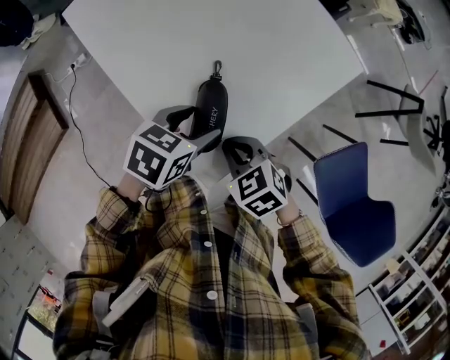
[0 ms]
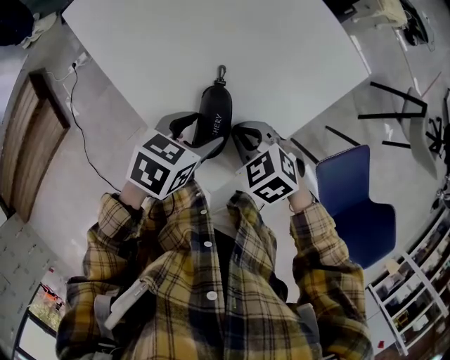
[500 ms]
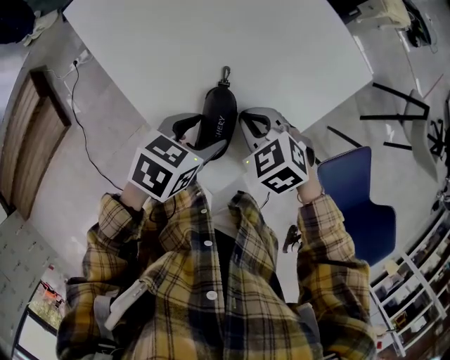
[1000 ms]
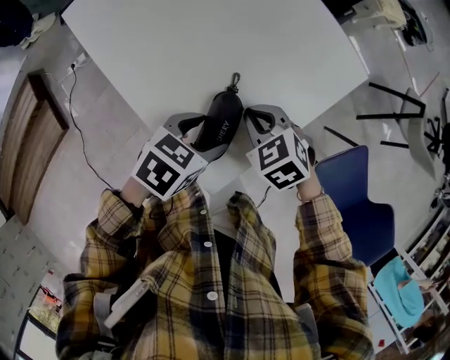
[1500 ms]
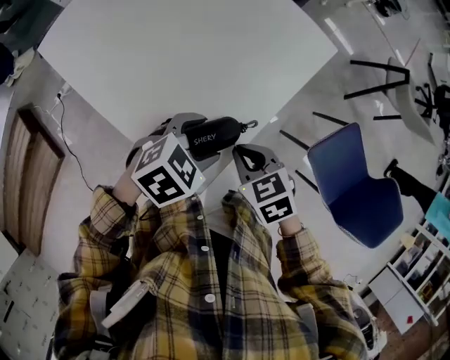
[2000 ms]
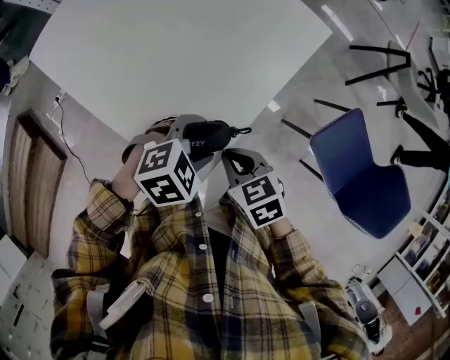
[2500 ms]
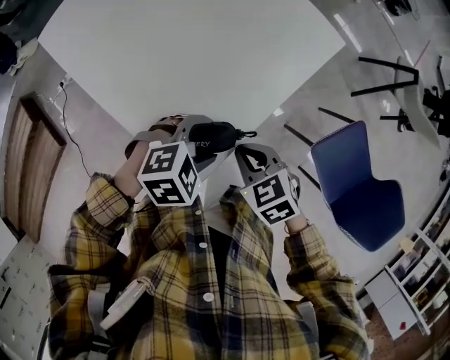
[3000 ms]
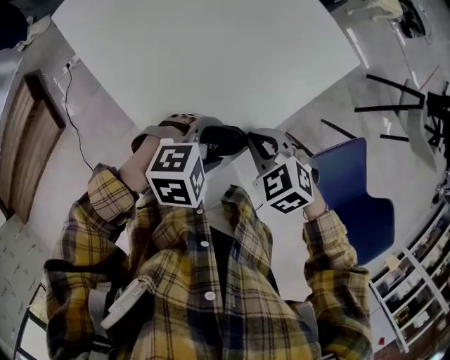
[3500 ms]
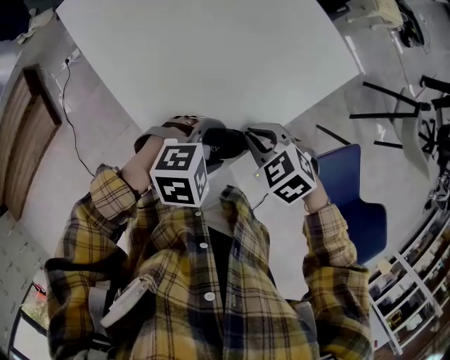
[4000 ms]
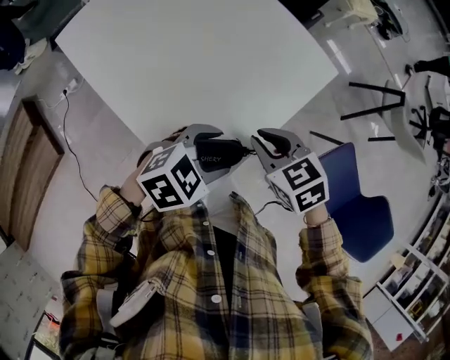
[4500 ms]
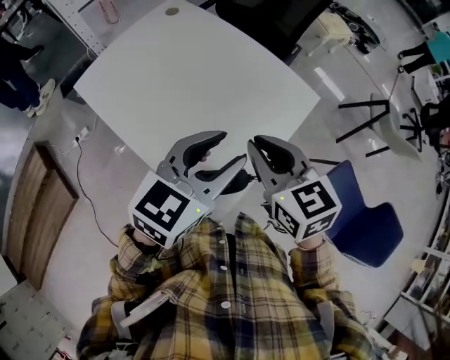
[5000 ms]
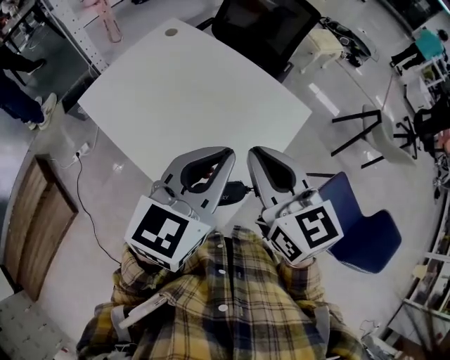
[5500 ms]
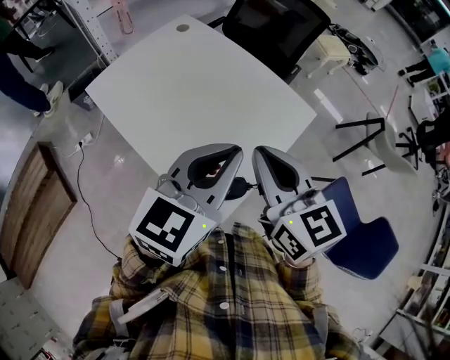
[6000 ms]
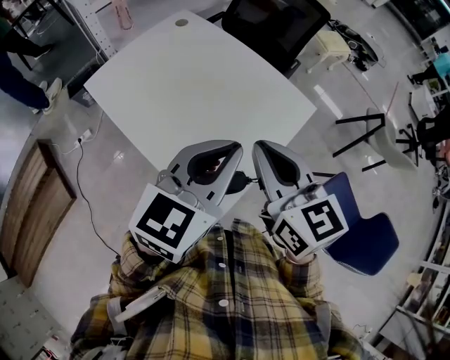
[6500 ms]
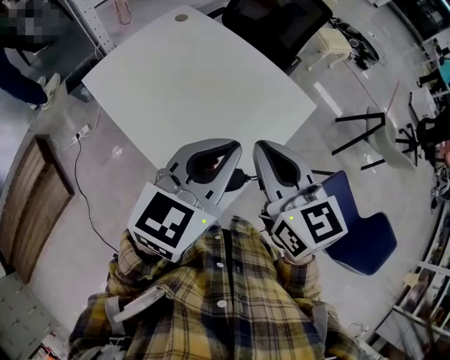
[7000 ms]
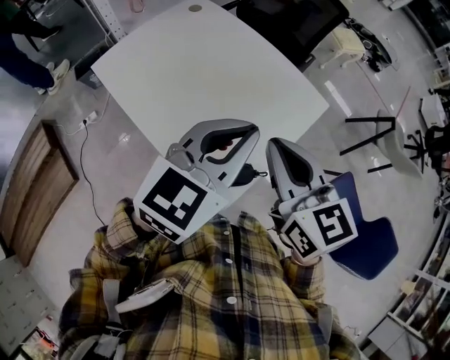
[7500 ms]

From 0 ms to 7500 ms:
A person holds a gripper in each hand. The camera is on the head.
From 0 ms to 2000 ms: The grippers both shift to the right by approximately 5 cm. The left gripper swivels approximately 40 degrees; the right gripper moves roughly 10 cm forward and comes back, and rotates approximately 20 degrees.
From 2000 ms to 4000 ms: The right gripper turns by approximately 30 degrees.
From 4000 ms to 5500 ms: The two grippers go about 30 cm upward. The right gripper angles its fingers upward, by some 50 degrees. Meanwhile the left gripper points its fingers about 50 degrees further upward, and closes.
From 5500 ms to 7500 ms: There are only small adjustments of the grippers.

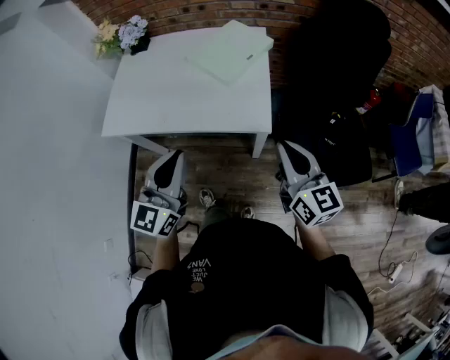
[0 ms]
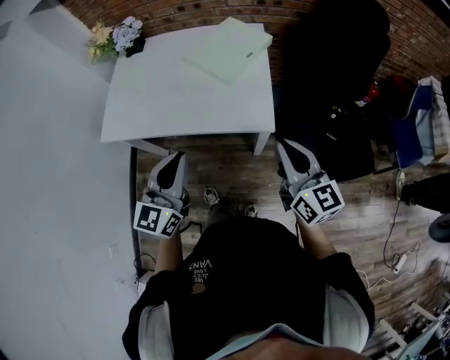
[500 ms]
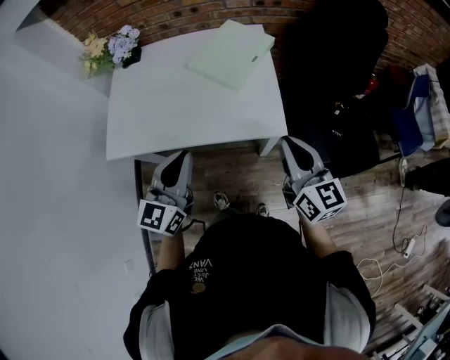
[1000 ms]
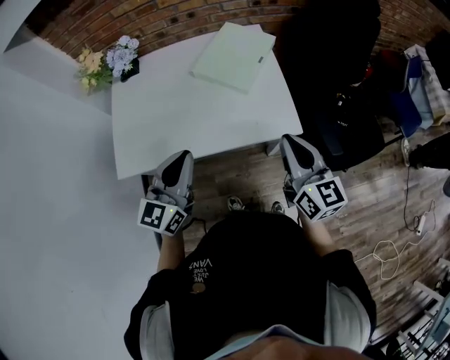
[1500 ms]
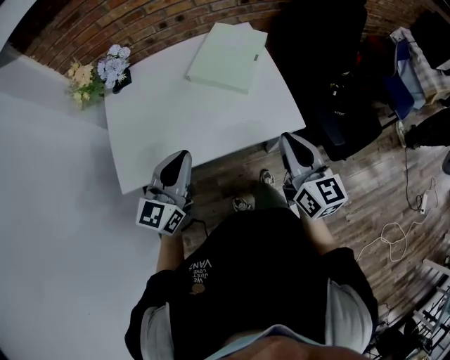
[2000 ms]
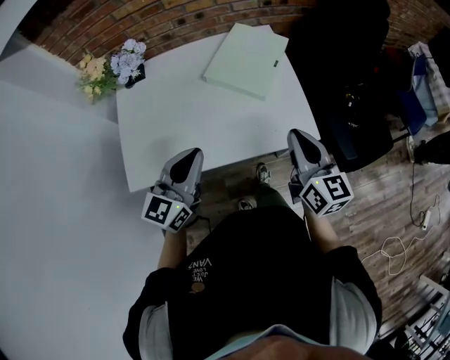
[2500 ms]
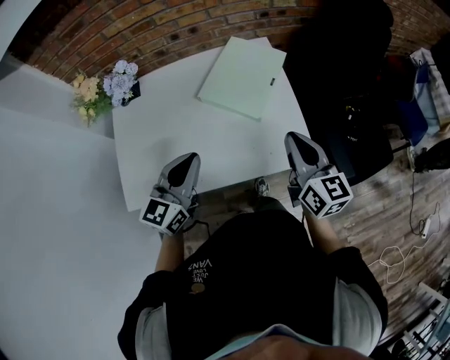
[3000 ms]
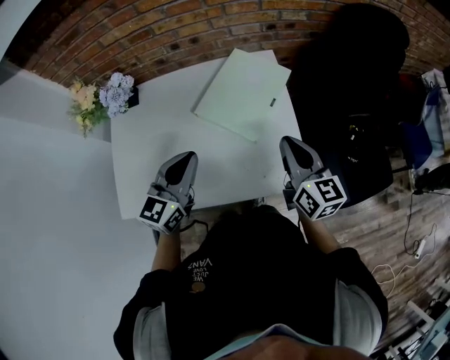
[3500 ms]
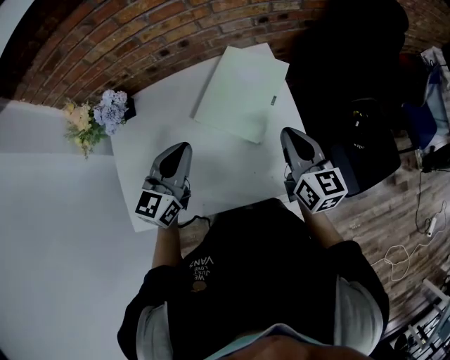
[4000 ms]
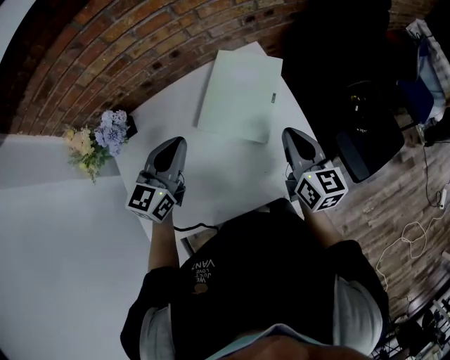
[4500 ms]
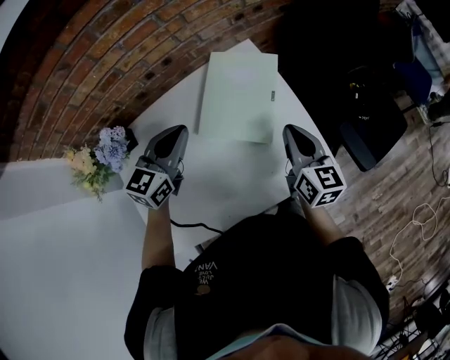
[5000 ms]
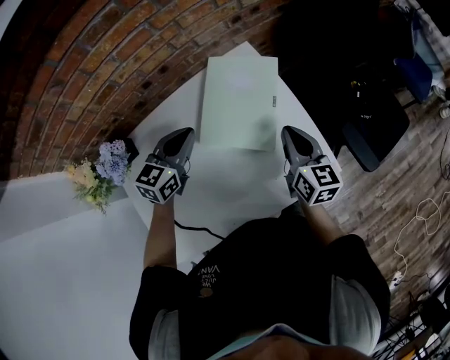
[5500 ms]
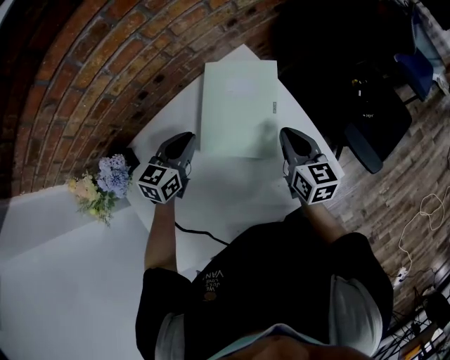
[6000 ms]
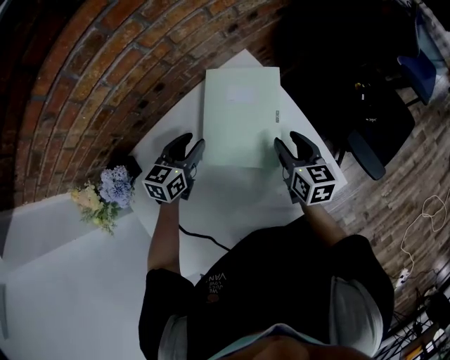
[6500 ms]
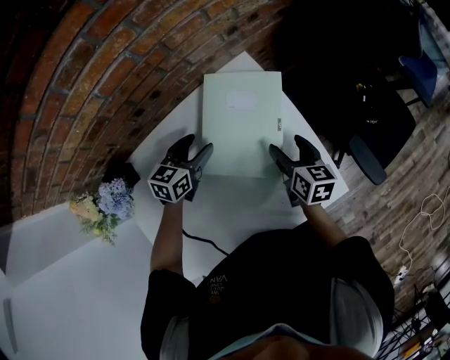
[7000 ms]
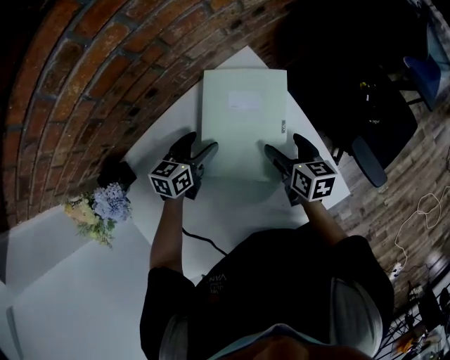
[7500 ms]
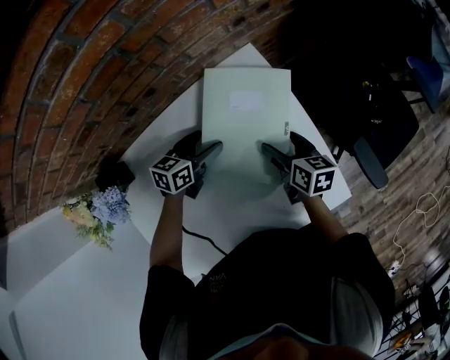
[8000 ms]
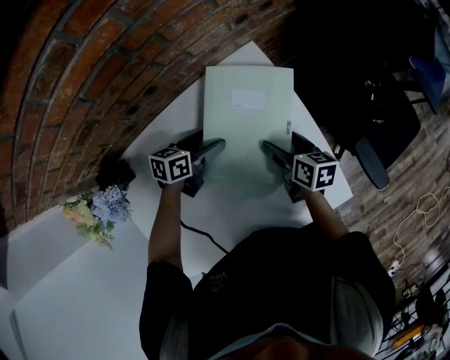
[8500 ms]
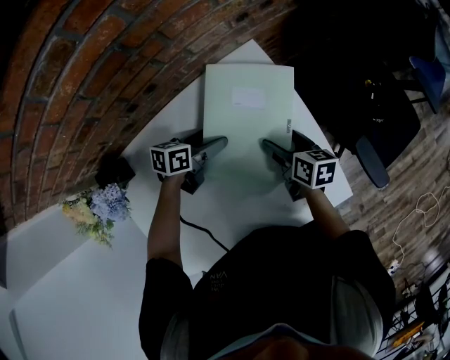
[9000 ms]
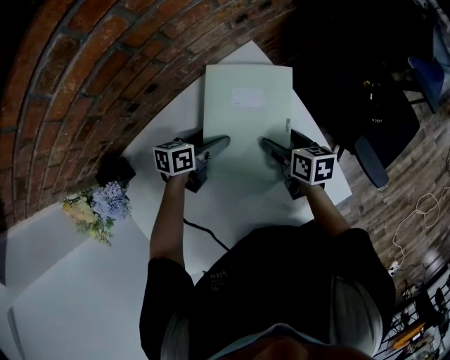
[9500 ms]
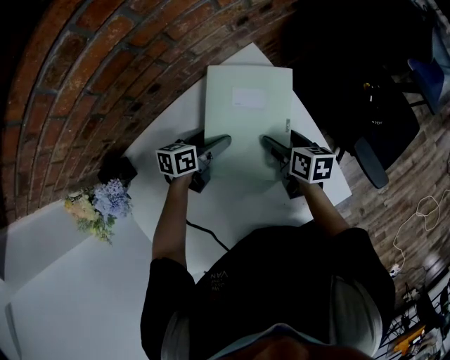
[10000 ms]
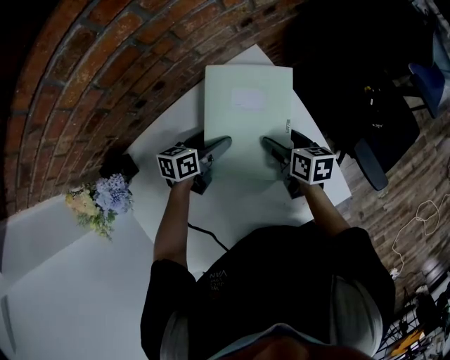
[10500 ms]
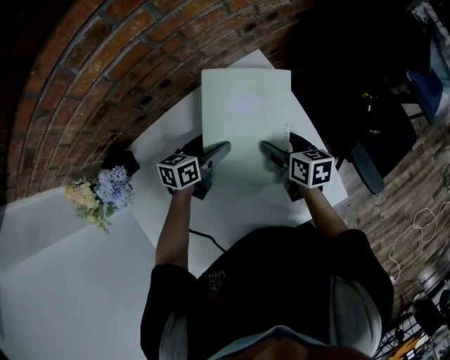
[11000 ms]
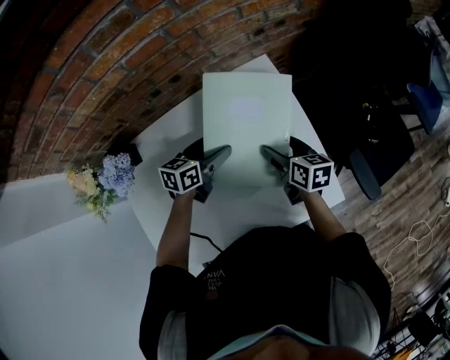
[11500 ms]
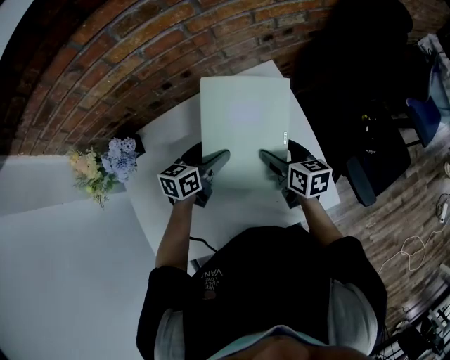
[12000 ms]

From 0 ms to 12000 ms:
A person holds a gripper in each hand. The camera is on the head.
From 0 ms to 2000 ms: The left gripper moves to the left and forward, roughly 20 cm, and swivels some 20 degrees. The right gripper is displaced to the left by some 15 cm, and rotates about 20 degrees.
From 2000 ms to 4000 ms: Both grippers move forward, about 25 cm.
From 4000 ms to 6000 ms: The right gripper travels downward by about 10 cm; the left gripper is displaced forward and downward by approximately 20 cm, and swivels roughly 30 degrees.
From 6000 ms to 8000 ms: Both grippers travel together downward and forward, about 10 cm. The left gripper changes its angle by about 20 degrees, and opens. The right gripper rotates about 20 degrees, and opens.
From 8000 ms to 10000 ms: The grippers make only small movements.
From 10000 ms to 12000 ms: The left gripper is displaced upward and backward by about 10 cm, and rotates some 20 degrees; the right gripper shifts about 10 cm upward.

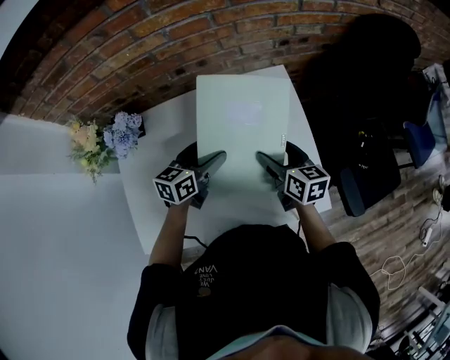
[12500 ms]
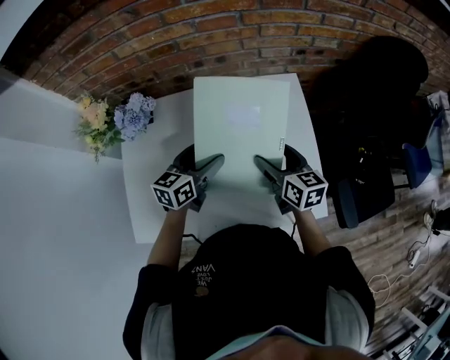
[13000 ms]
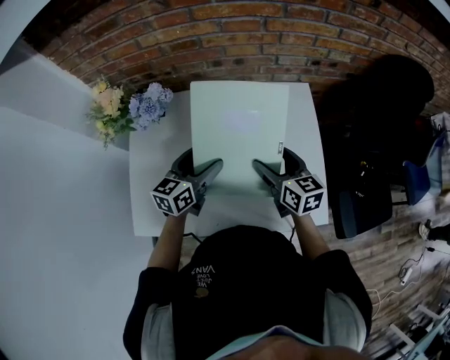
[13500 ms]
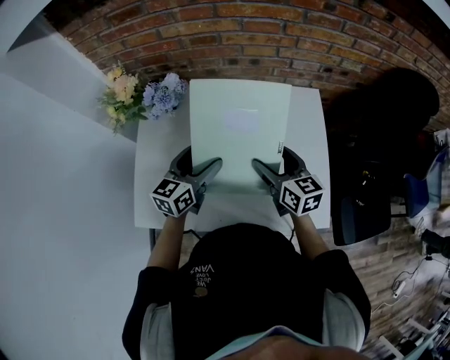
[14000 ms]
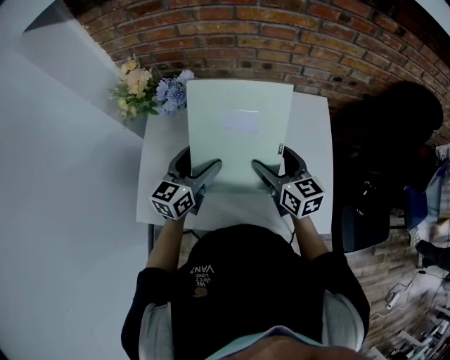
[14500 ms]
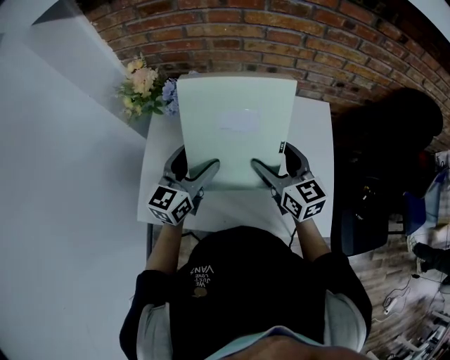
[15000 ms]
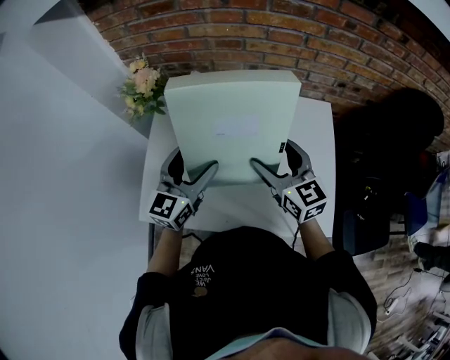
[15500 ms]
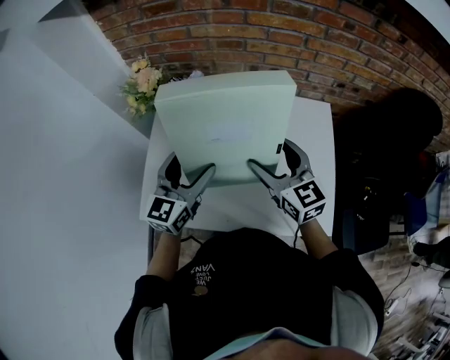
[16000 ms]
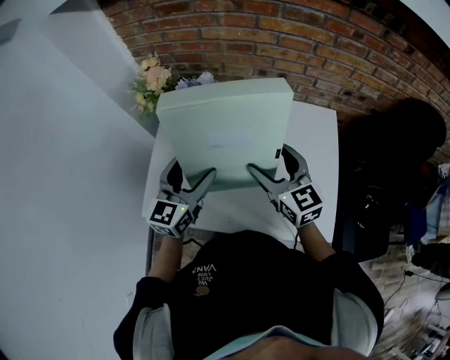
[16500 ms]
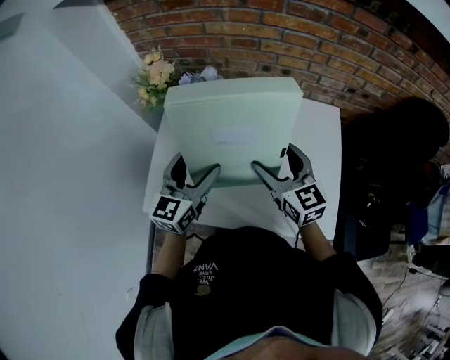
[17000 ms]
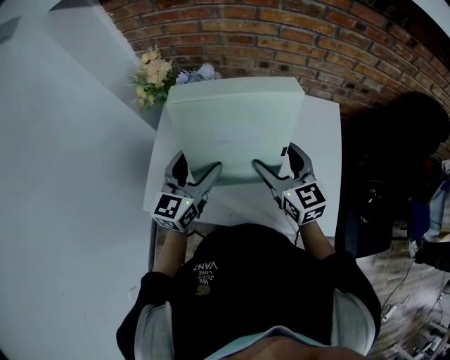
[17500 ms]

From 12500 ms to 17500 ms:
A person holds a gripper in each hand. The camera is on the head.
From 12500 ms to 15000 ms: The right gripper moves to the left and upward, some 20 cm, and swivels roughly 30 degrees; the left gripper is displaced to the left, upward and backward by roughly 20 cm, and turns by approximately 30 degrees.
From 15000 ms to 17500 ms: The grippers make only small movements.

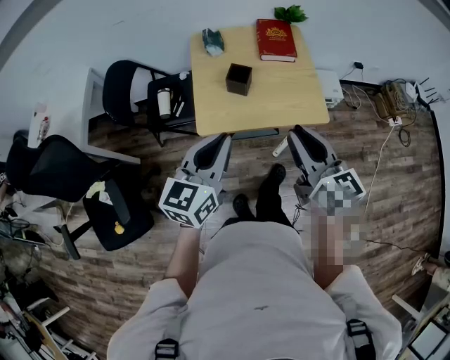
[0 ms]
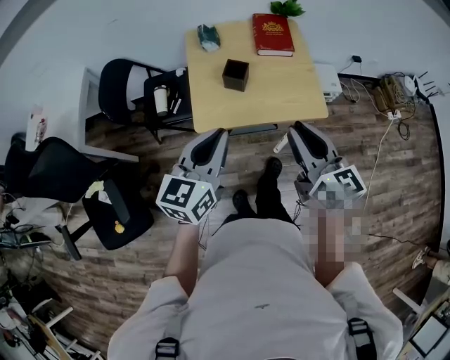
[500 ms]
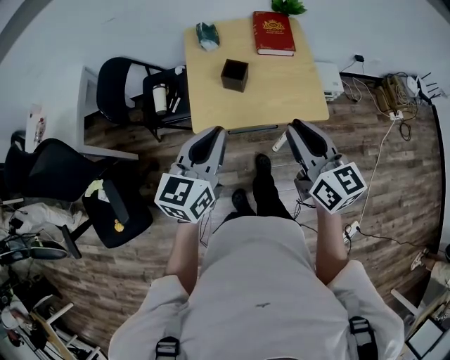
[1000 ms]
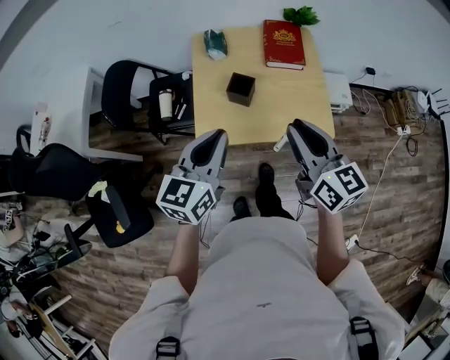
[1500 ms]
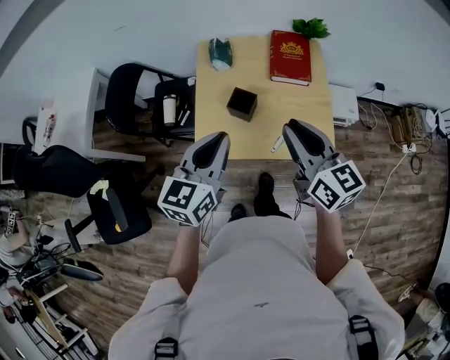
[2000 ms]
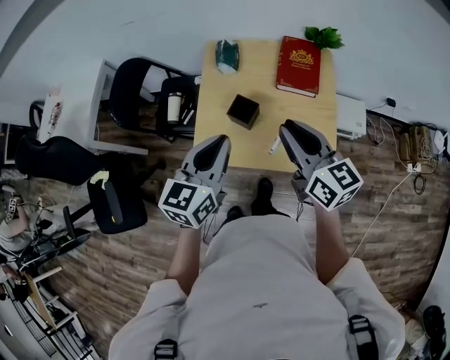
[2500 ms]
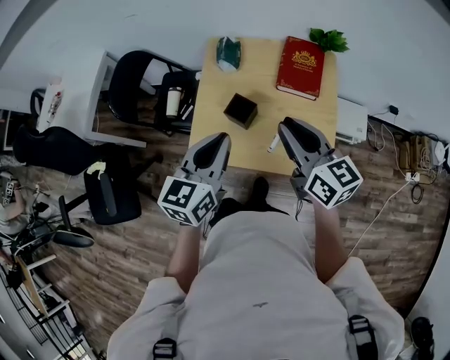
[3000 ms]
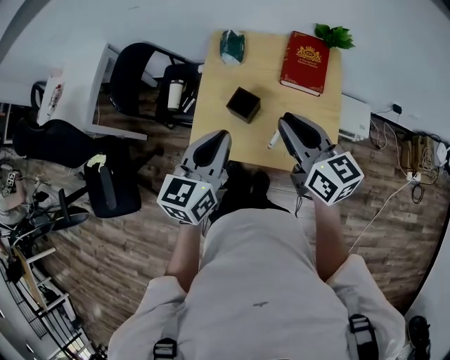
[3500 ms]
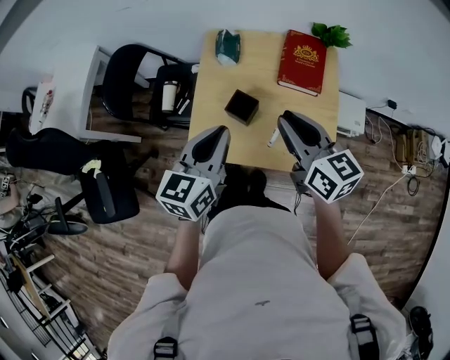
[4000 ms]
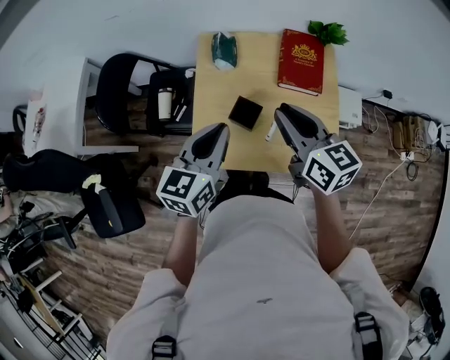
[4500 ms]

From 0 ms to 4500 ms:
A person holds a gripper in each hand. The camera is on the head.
From 0 ms to 2000 ms: Both grippers move forward, approximately 15 cm.
From 2000 ms to 4500 ms: The grippers both shift forward by some 15 cm.
